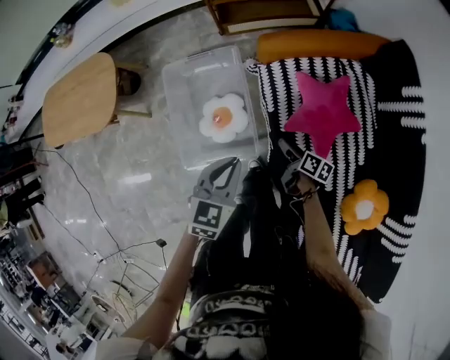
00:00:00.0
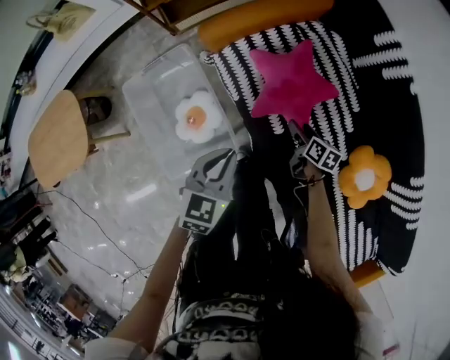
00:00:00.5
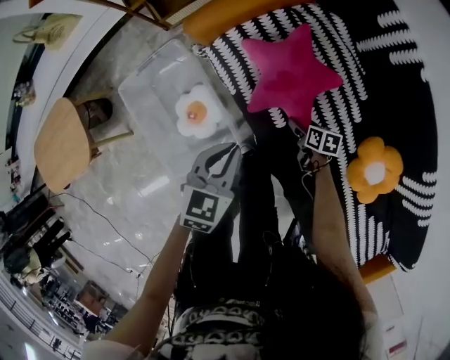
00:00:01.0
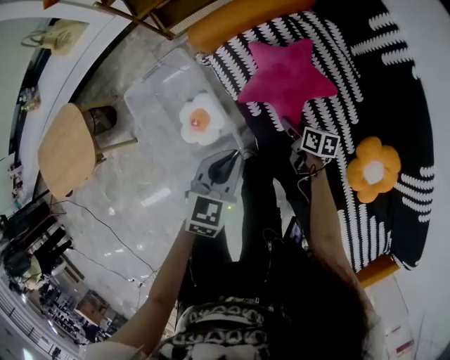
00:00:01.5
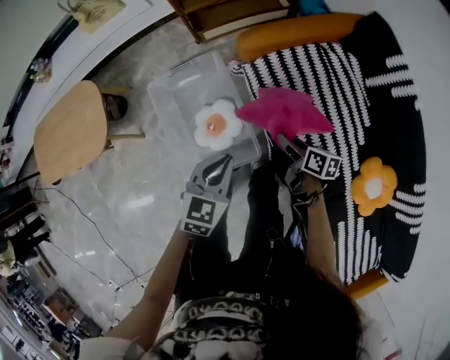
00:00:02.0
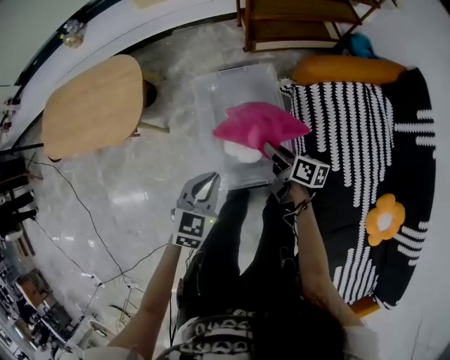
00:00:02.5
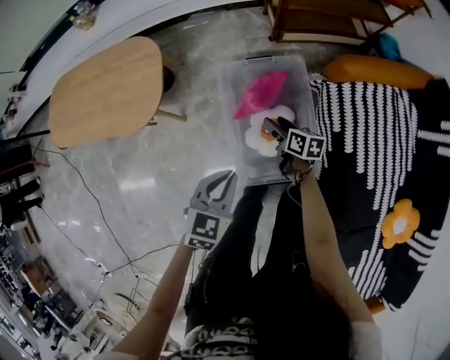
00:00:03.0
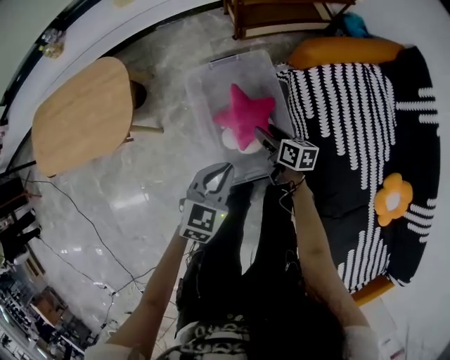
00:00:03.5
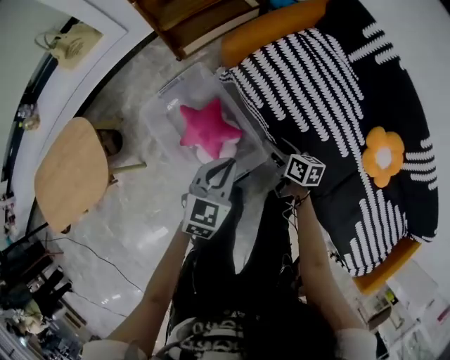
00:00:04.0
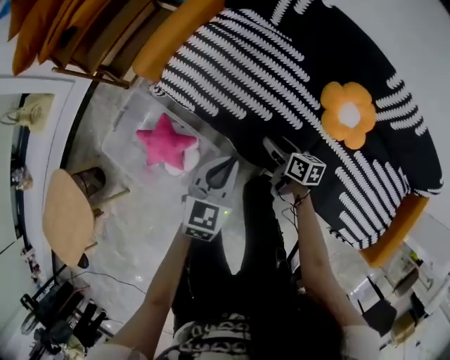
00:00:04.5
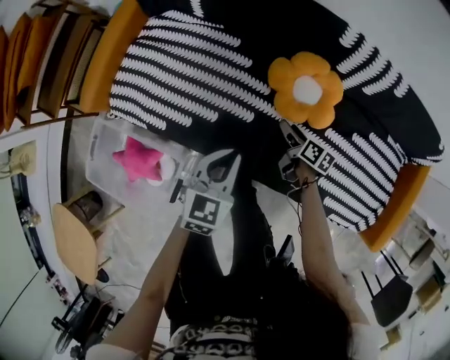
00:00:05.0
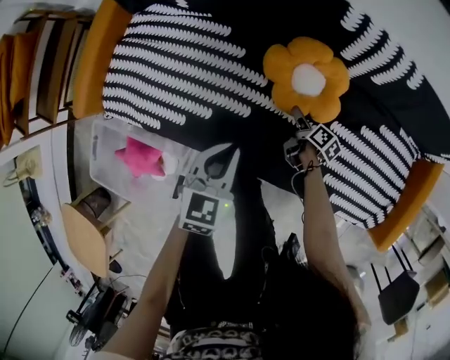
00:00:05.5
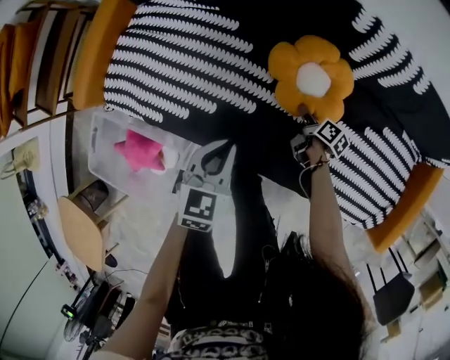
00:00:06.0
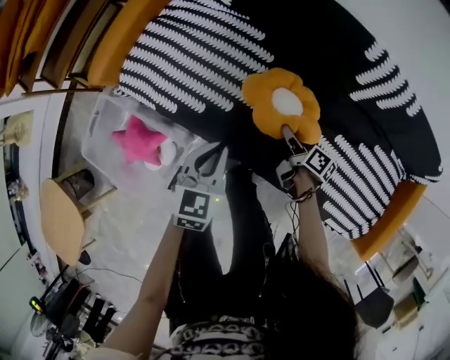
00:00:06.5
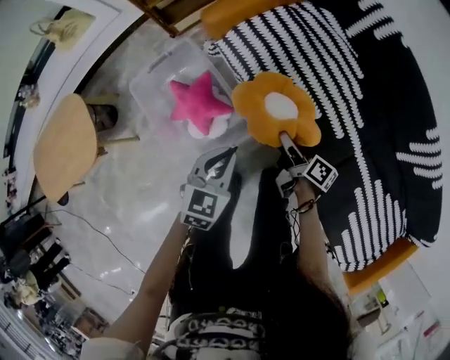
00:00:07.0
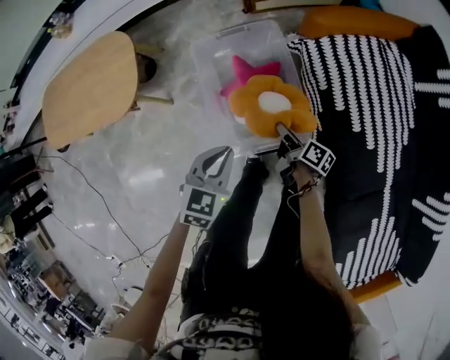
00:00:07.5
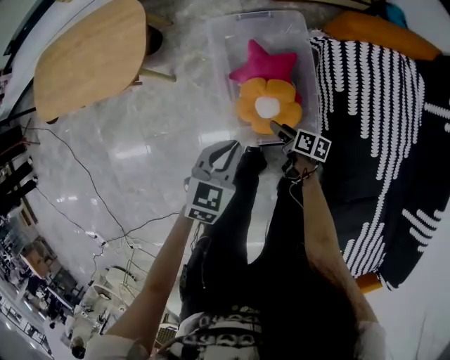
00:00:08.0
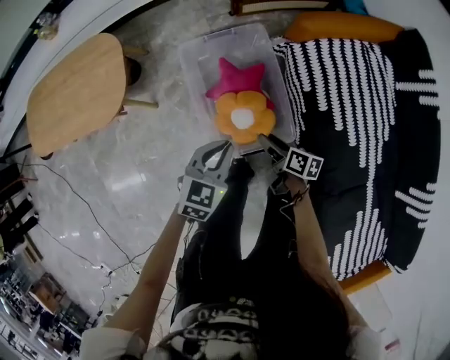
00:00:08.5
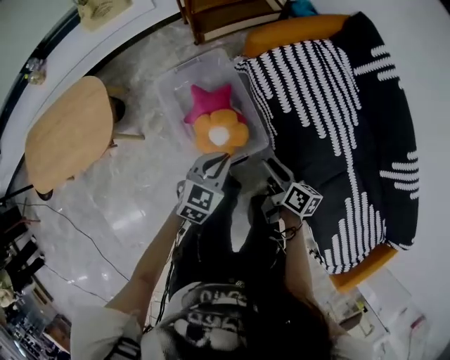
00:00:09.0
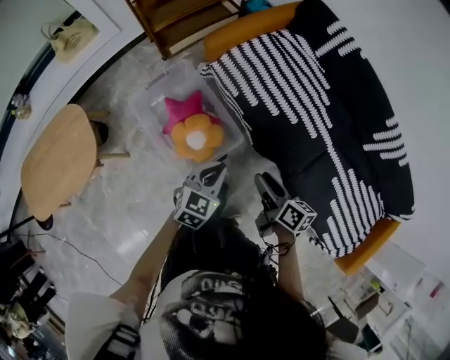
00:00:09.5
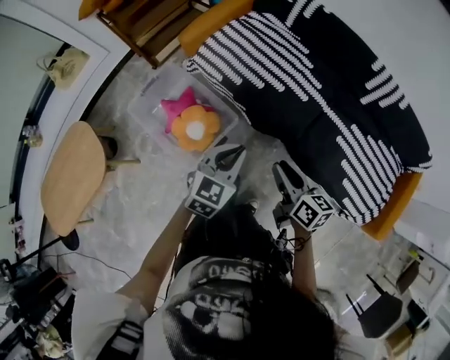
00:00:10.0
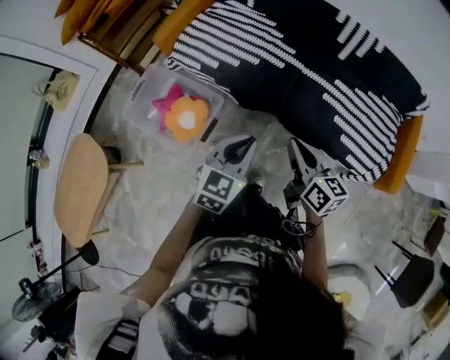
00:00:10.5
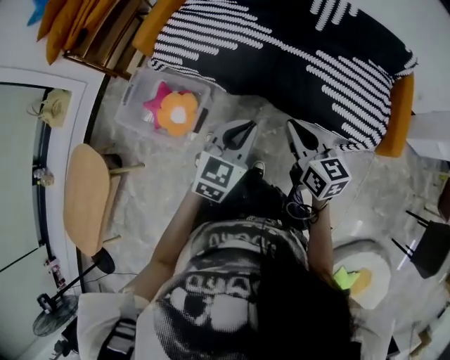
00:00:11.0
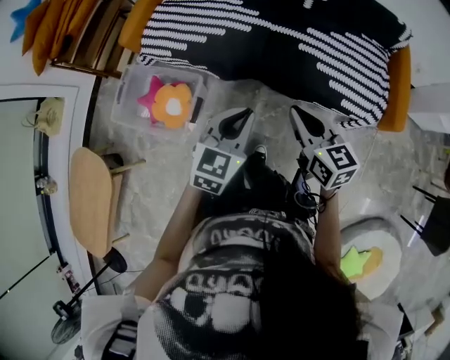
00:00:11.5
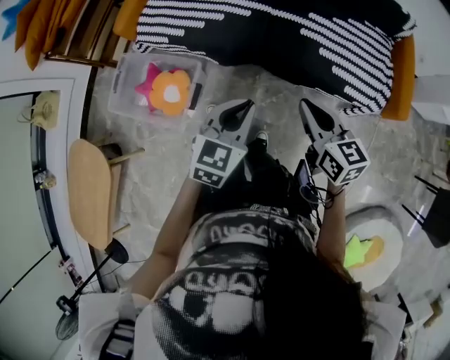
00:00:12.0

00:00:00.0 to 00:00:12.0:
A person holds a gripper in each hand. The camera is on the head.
00:00:00.0 to 00:00:02.0: The left gripper travels to the right and back again, about 15 cm each way; the right gripper travels downward and back again, some 15 cm each way, and closes its fingers.
00:00:02.0 to 00:00:04.0: The right gripper opens up.
00:00:04.0 to 00:00:06.0: The two grippers travel together, about 60 cm. The right gripper twists some 50 degrees clockwise, seen from behind, and closes its fingers. The left gripper changes its angle by about 30 degrees.
00:00:06.0 to 00:00:08.0: The pair of grippers is taken some 80 cm. The left gripper rotates about 50 degrees. Meanwhile the right gripper swivels about 80 degrees, and opens.
00:00:08.0 to 00:00:10.0: The right gripper ends up roughly 50 cm from where it was, turns by some 50 degrees, and closes; the left gripper changes place by roughly 40 cm, and rotates about 50 degrees.
00:00:10.0 to 00:00:12.0: Both grippers move to the right and backward, roughly 25 cm. The right gripper changes its angle by roughly 20 degrees.

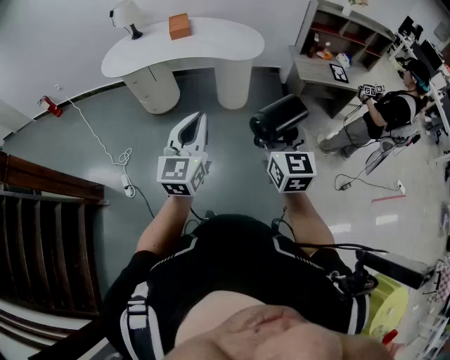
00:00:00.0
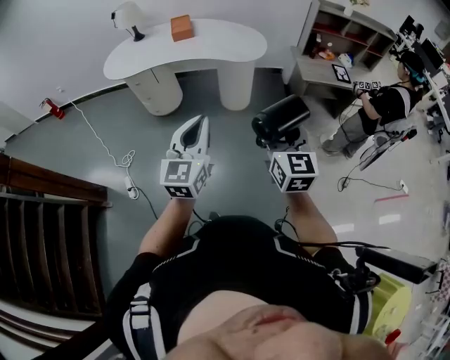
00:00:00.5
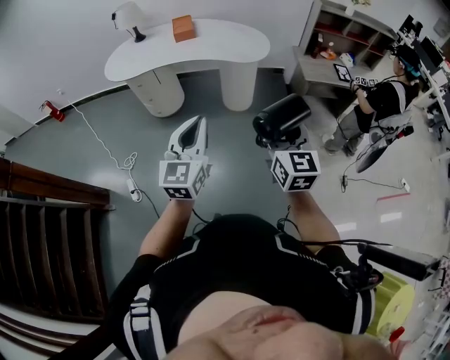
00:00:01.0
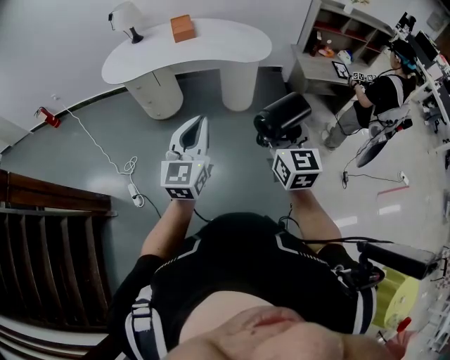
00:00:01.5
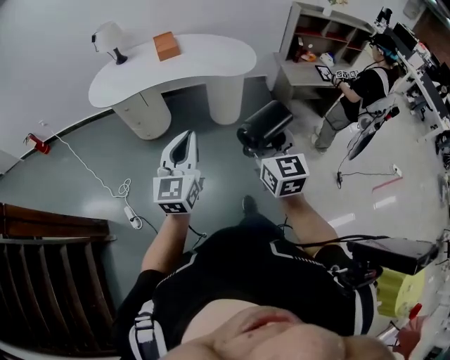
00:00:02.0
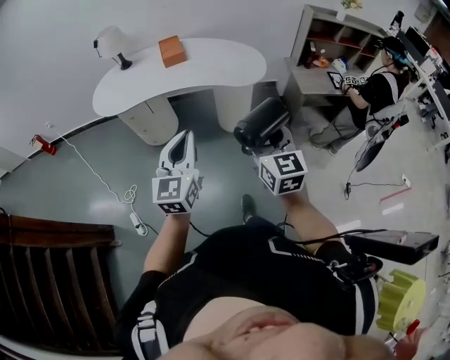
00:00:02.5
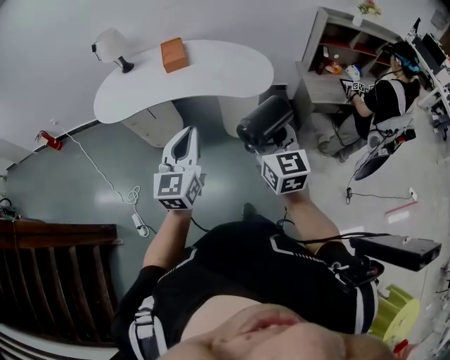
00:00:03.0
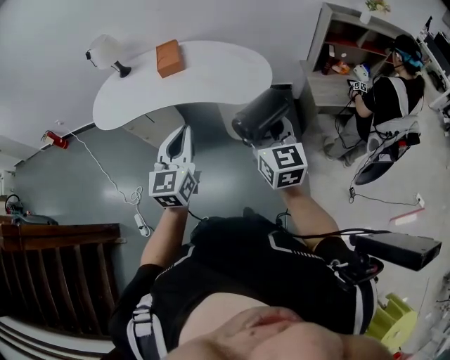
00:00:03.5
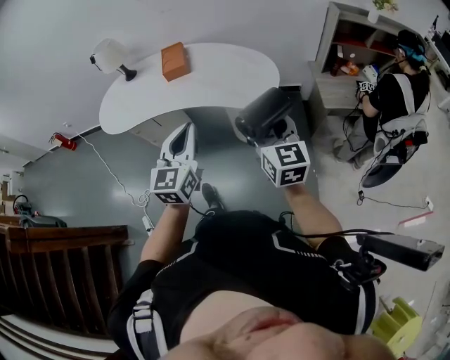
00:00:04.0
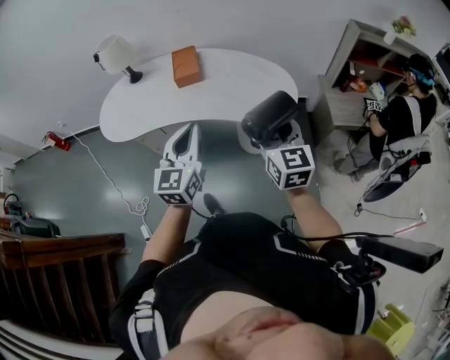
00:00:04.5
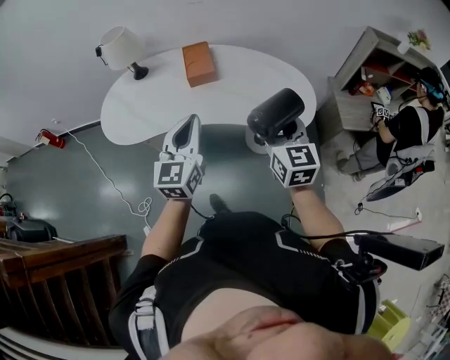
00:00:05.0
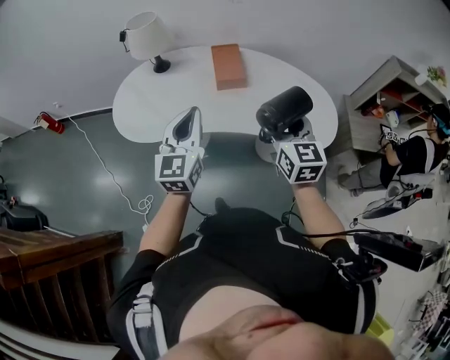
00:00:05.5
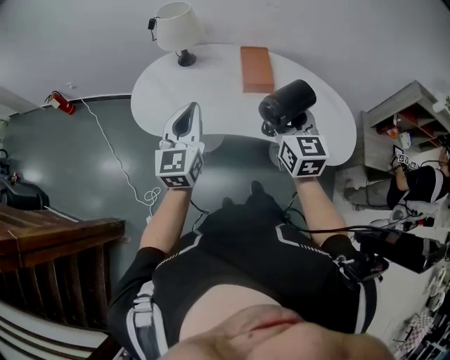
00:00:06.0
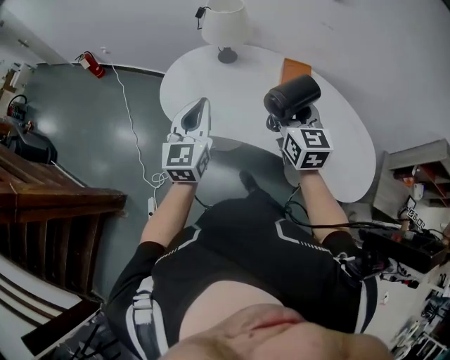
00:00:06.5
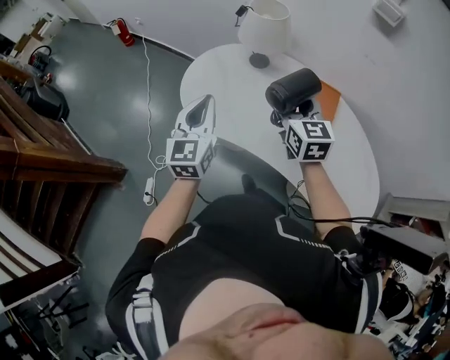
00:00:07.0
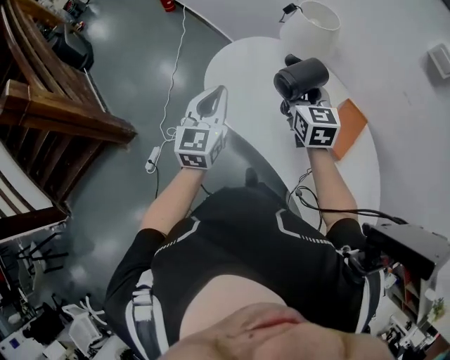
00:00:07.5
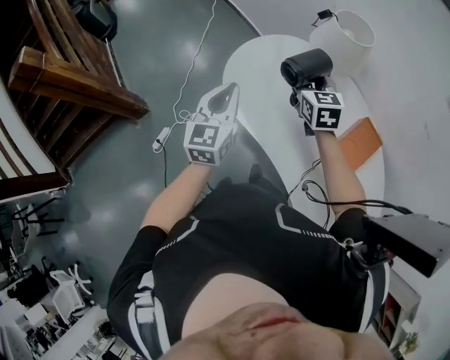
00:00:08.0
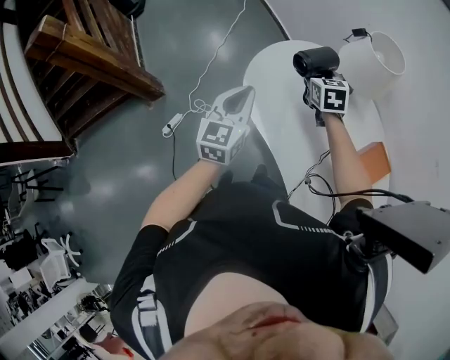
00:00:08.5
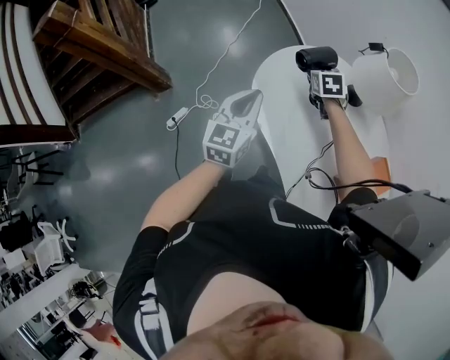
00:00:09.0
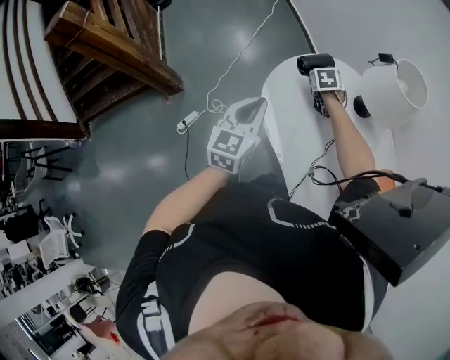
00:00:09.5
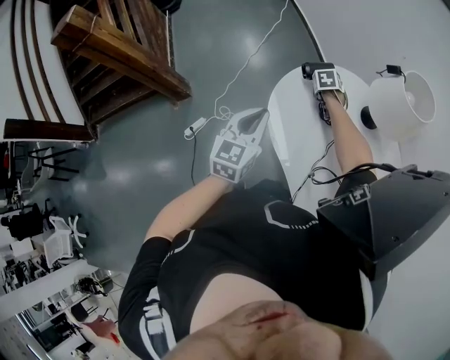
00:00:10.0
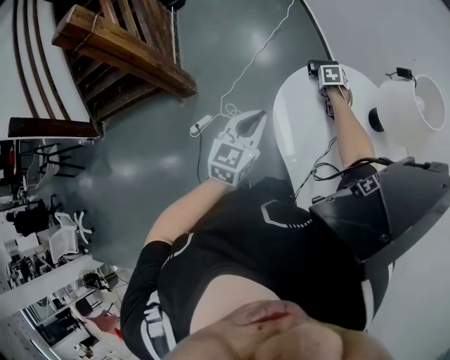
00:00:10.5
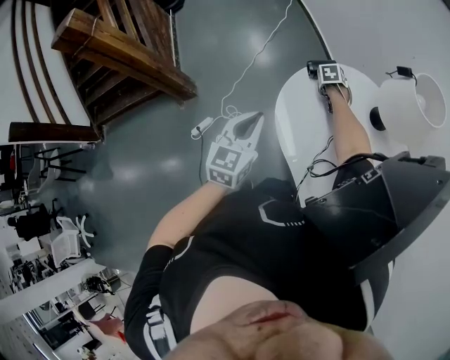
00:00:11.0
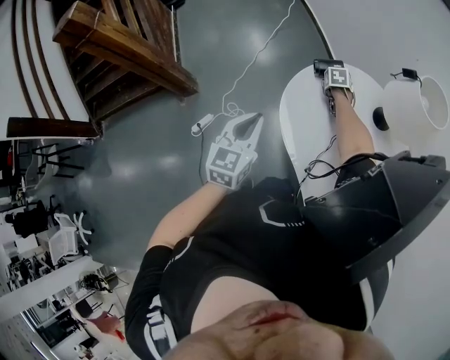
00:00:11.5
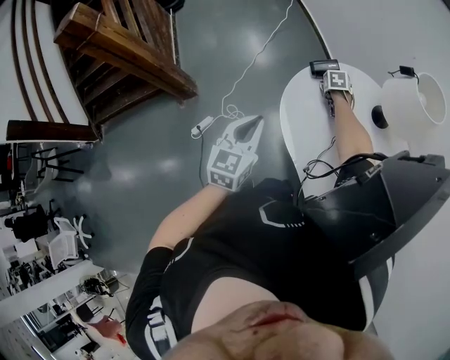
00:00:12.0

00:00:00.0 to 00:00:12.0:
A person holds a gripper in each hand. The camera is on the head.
00:00:00.0 to 00:00:02.0: Both grippers travel together to the left and forward, some 15 cm.
00:00:02.0 to 00:00:04.0: Both grippers move forward, approximately 30 cm.
00:00:04.0 to 00:00:06.0: Both grippers are carried to the left and forward, about 50 cm.
00:00:06.0 to 00:00:08.0: The left gripper changes place by some 20 cm, and turns by some 40 degrees; the right gripper shifts by about 40 cm, and changes its angle by about 50 degrees.
00:00:08.0 to 00:00:10.0: The left gripper moves downward, some 5 cm; the right gripper shifts some 35 cm downward and forward, and tilts its fingers roughly 40 degrees downward.
00:00:10.0 to 00:00:12.0: The left gripper shifts by approximately 5 cm.

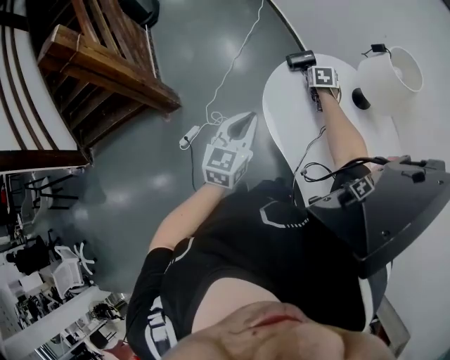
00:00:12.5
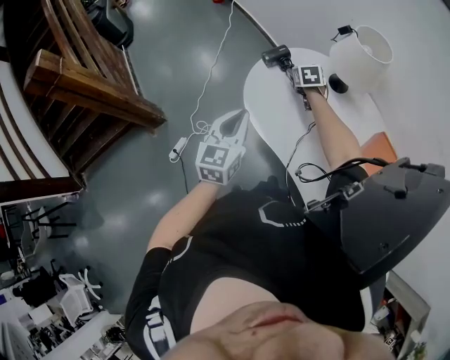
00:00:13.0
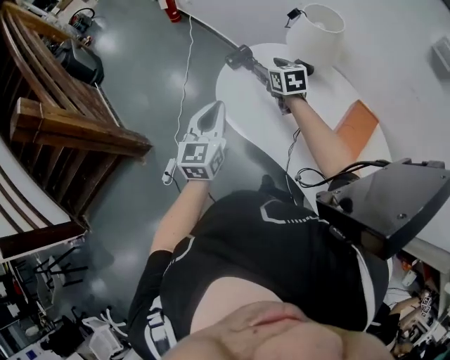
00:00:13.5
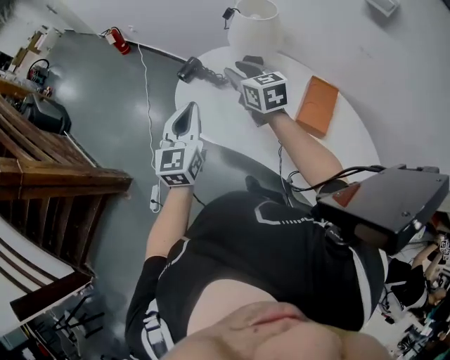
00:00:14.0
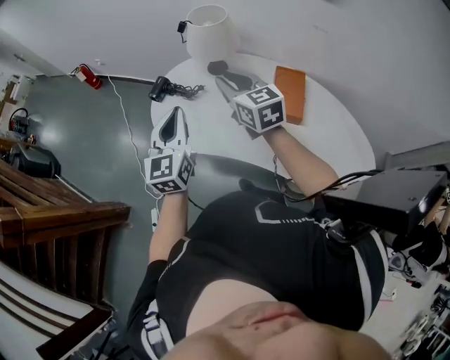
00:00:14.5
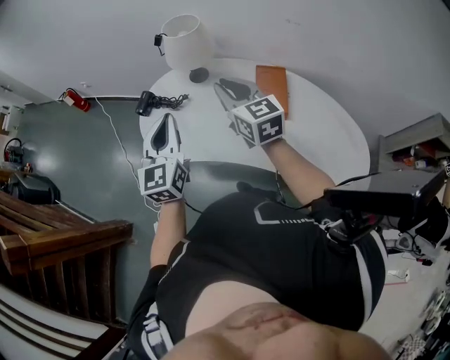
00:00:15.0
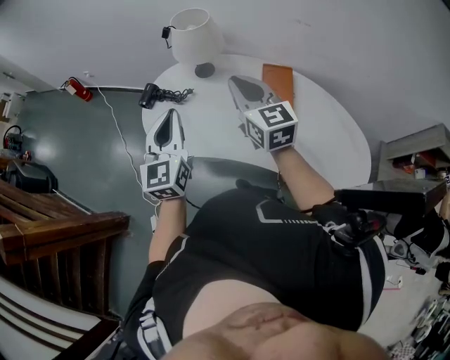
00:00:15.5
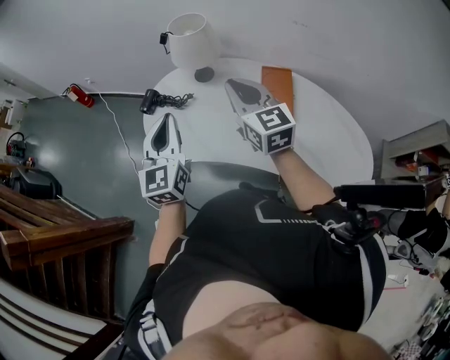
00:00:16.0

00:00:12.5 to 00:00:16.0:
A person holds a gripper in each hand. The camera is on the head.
00:00:12.5 to 00:00:14.5: The right gripper goes about 40 cm upward, backward and to the right, tilts its fingers some 40 degrees upward, and closes its fingers. Meanwhile the left gripper moves upward and to the right, roughly 15 cm, and changes its angle by roughly 30 degrees.
00:00:14.5 to 00:00:16.0: The right gripper heads to the right, covering roughly 5 cm.
